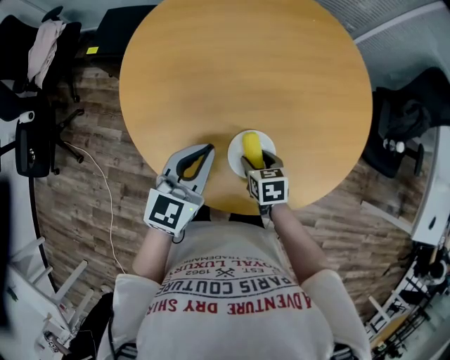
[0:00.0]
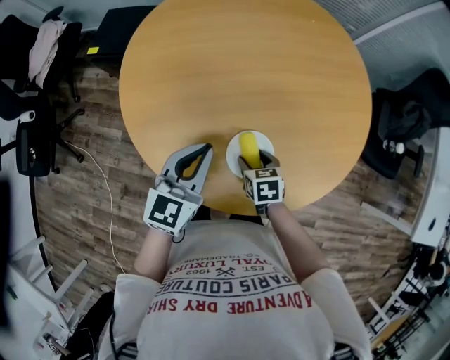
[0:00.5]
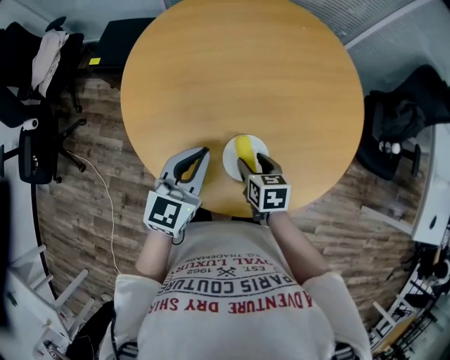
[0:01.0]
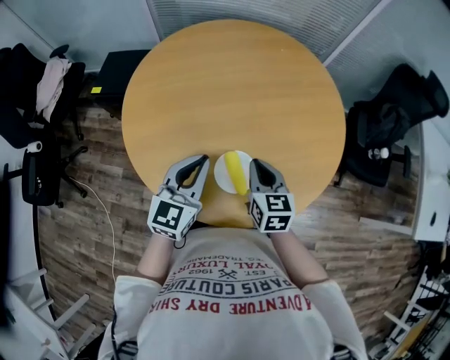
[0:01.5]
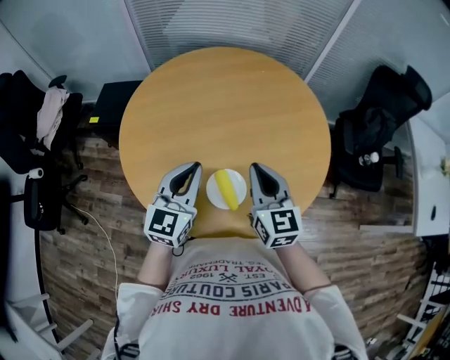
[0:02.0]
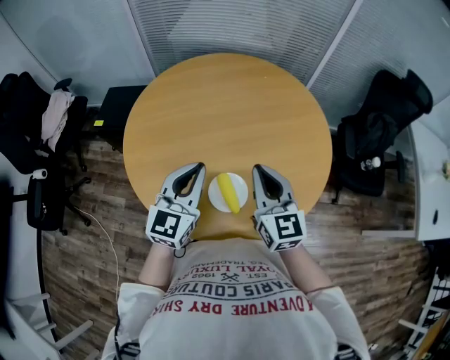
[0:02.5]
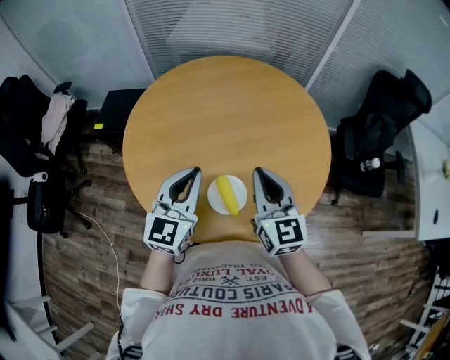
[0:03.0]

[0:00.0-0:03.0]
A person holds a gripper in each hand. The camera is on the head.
0:00.0 to 0:01.5: The right gripper travels upward by about 15 cm, turns by some 30 degrees, and closes, while the left gripper ends up roughly 5 cm from where it was.
0:01.5 to 0:03.0: The right gripper heads upward, covering roughly 15 cm, and turns by roughly 20 degrees, while the left gripper shifts some 5 cm upward.

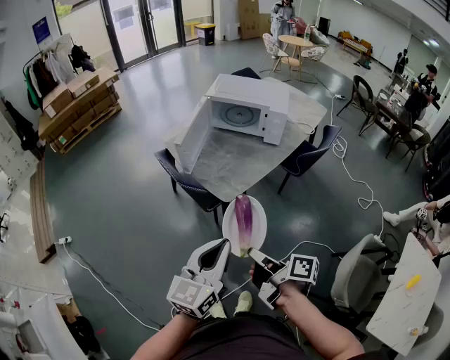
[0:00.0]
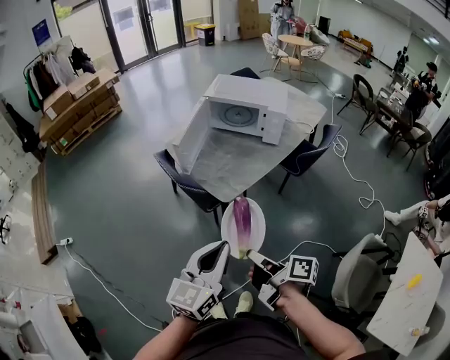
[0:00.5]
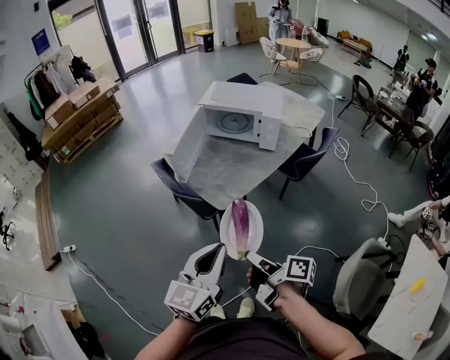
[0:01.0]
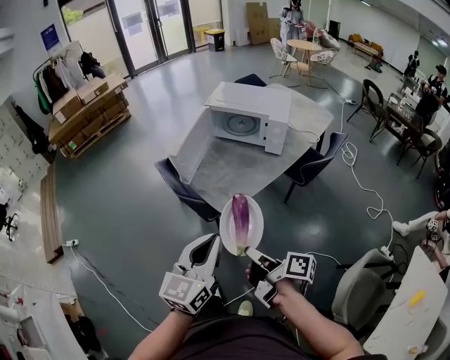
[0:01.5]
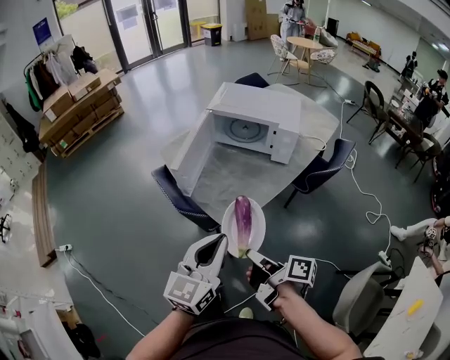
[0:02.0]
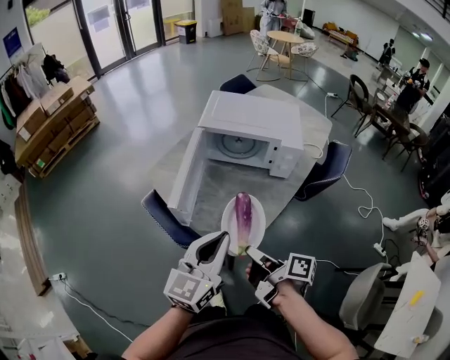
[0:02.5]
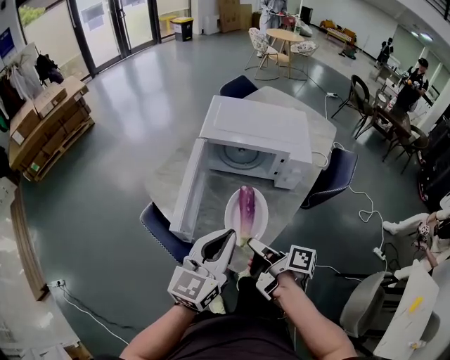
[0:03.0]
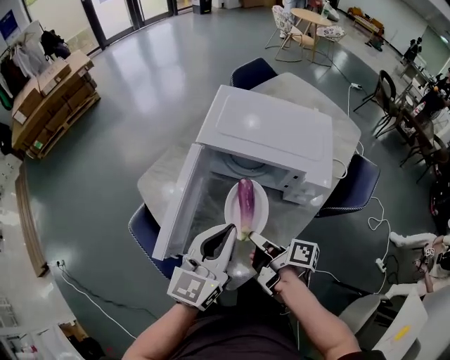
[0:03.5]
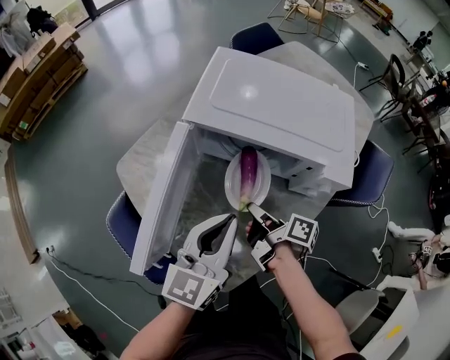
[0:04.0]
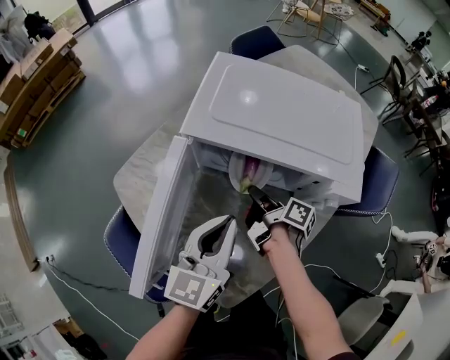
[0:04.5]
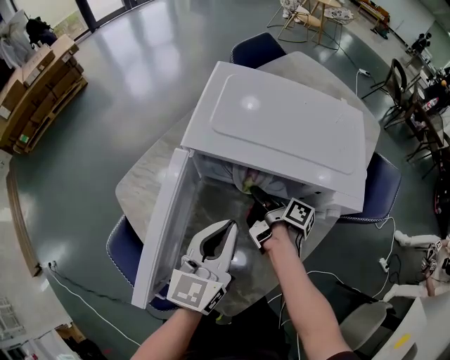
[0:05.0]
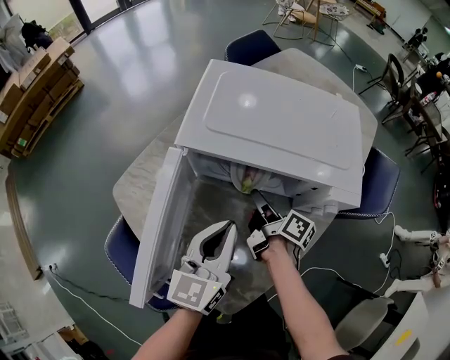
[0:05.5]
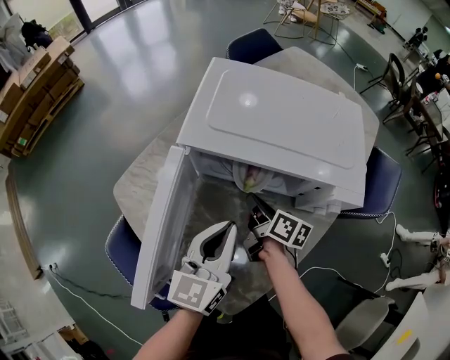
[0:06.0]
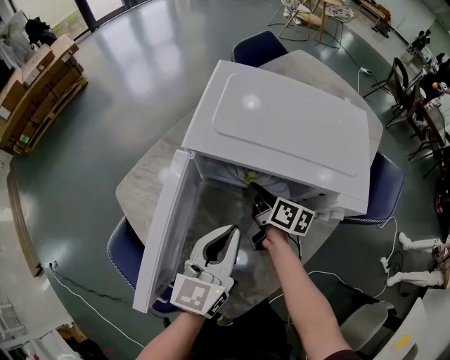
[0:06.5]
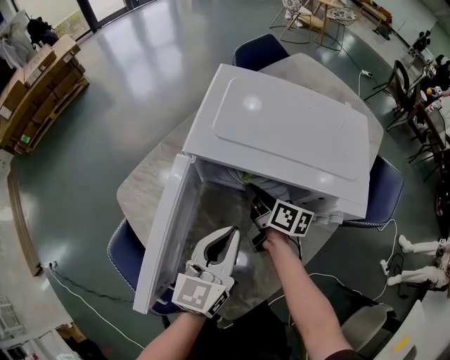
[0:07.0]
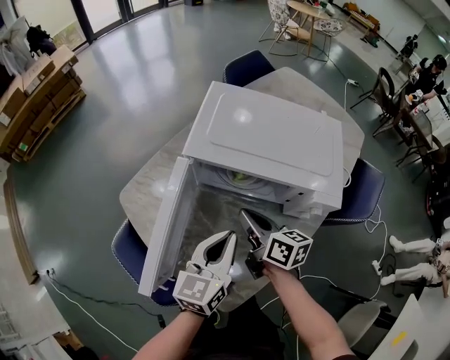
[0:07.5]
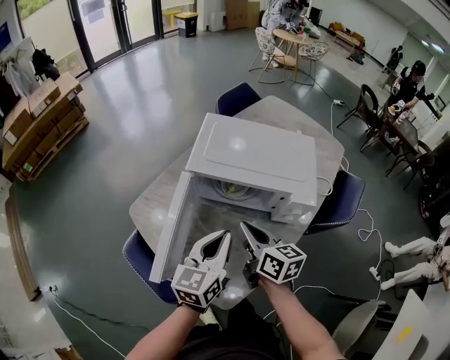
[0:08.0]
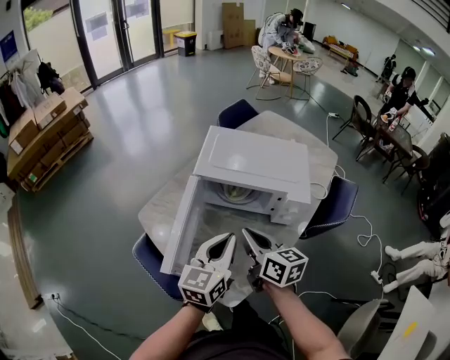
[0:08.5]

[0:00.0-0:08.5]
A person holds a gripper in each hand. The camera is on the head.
0:00.0 to 0:02.0: The left gripper ends up approximately 15 cm from where it was.
0:02.0 to 0:04.0: The left gripper ends up roughly 40 cm from where it was.
0:04.0 to 0:06.5: The left gripper heads downward, covering approximately 5 cm.
0:06.5 to 0:08.5: The left gripper goes approximately 15 cm upward.

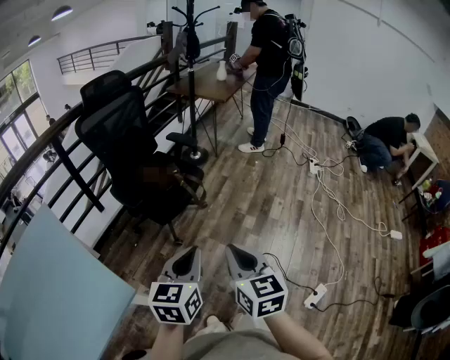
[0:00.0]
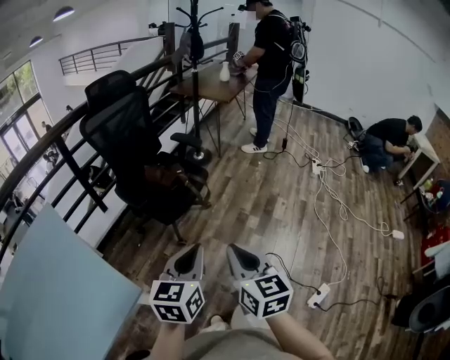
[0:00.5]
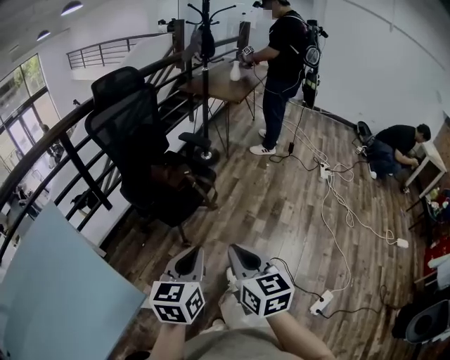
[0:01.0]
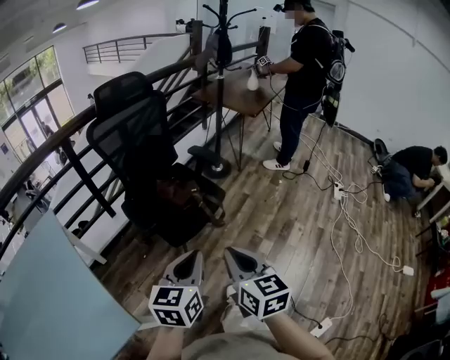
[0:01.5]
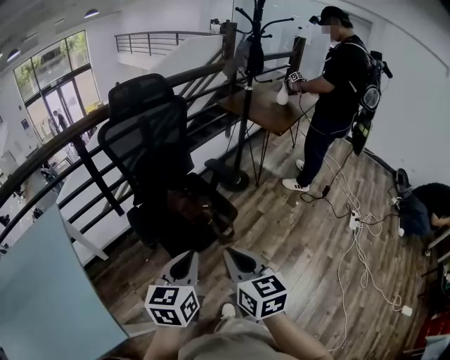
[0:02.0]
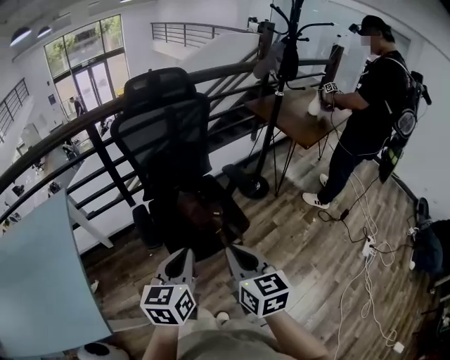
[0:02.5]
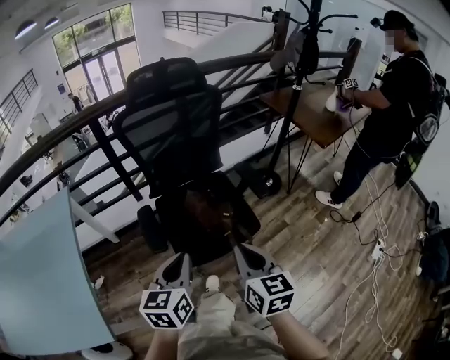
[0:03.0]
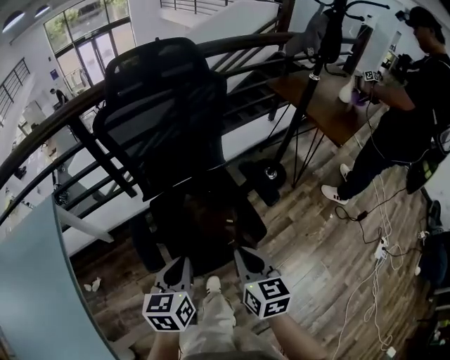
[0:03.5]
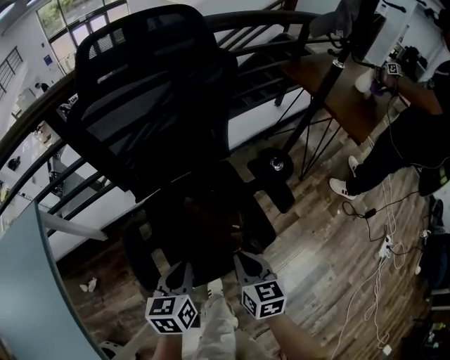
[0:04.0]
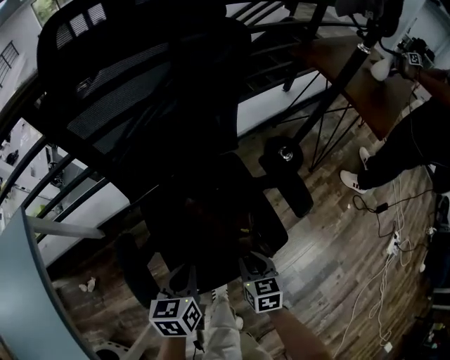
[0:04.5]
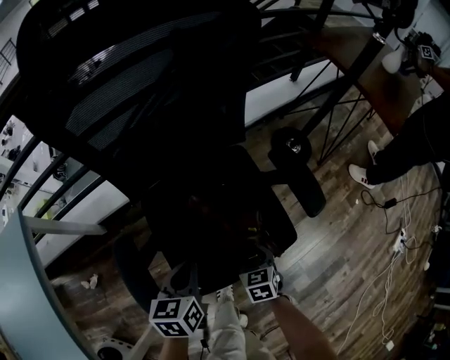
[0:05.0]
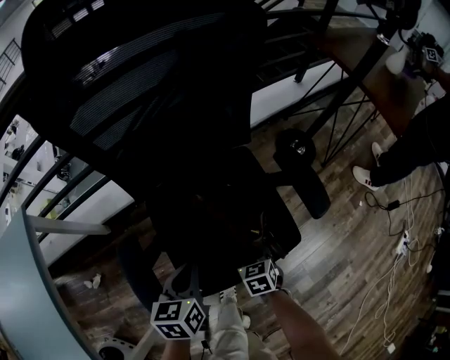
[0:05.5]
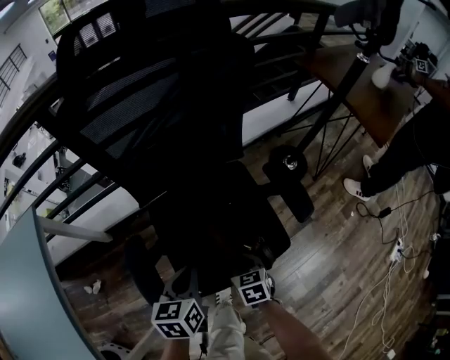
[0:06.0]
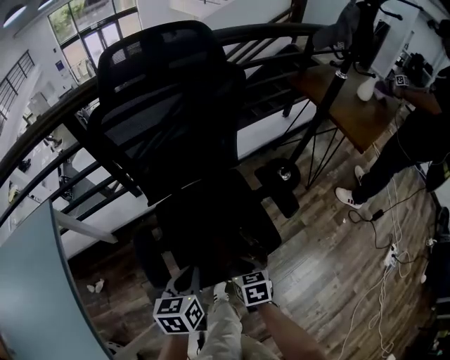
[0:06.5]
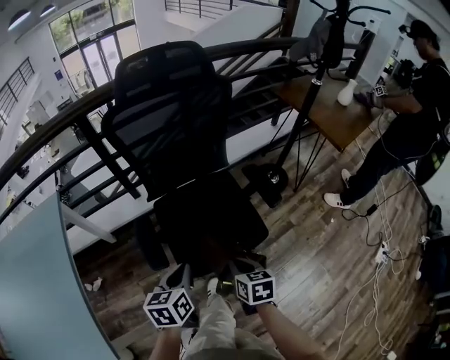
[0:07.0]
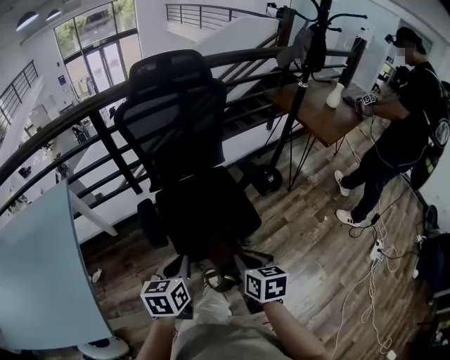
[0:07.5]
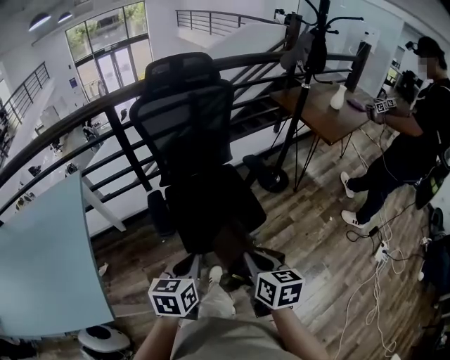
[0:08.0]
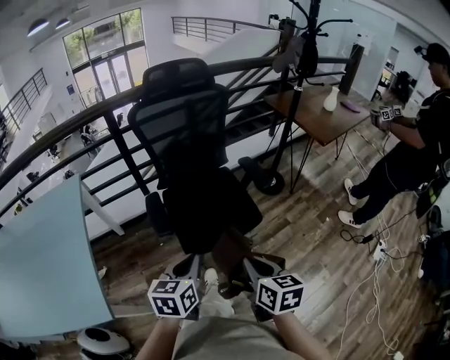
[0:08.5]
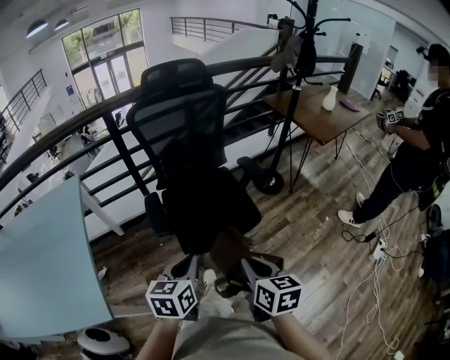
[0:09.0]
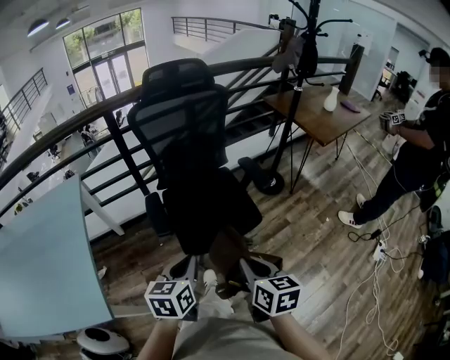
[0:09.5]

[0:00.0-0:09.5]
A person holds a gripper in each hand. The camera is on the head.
0:00.0 to 0:02.0: The grippers both shift forward by about 30 cm. The right gripper swivels roughly 20 degrees.
0:02.0 to 0:04.0: Both grippers travel together forward and downward, about 40 cm. The left gripper rotates about 30 degrees.
0:04.0 to 0:05.5: The right gripper shifts approximately 25 cm downward, turns by about 30 degrees, and opens, then closes once more. Meanwhile the left gripper heads downward and forward, covering roughly 10 cm.
0:05.5 to 0:07.5: The right gripper heads upward and backward, covering approximately 40 cm, and swivels about 30 degrees. The left gripper heads backward and upward, covering some 30 cm.
0:07.5 to 0:09.5: The right gripper travels backward and upward by some 10 cm. The left gripper is displaced backward by about 10 cm.

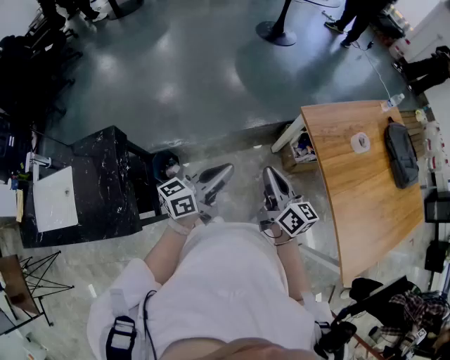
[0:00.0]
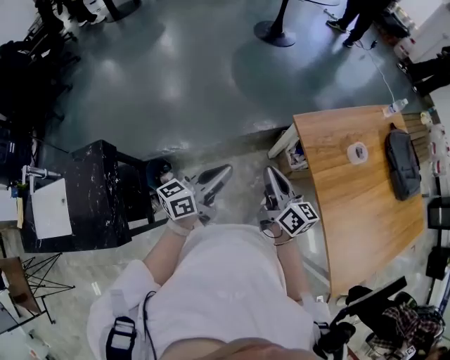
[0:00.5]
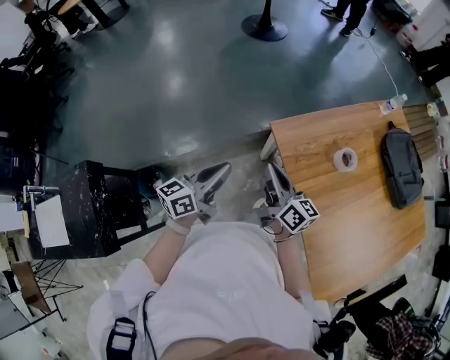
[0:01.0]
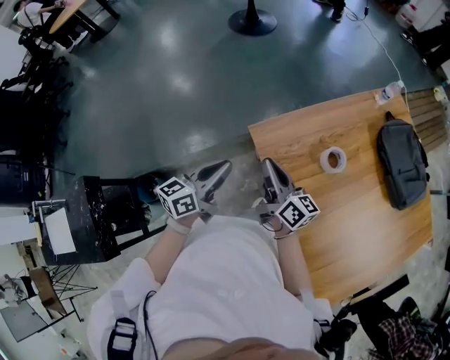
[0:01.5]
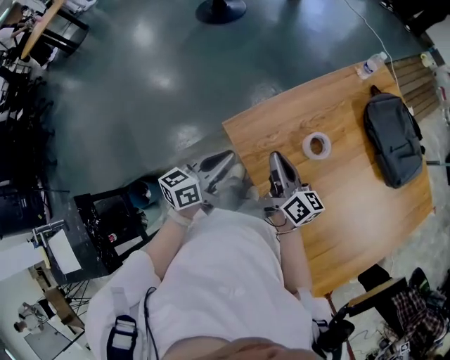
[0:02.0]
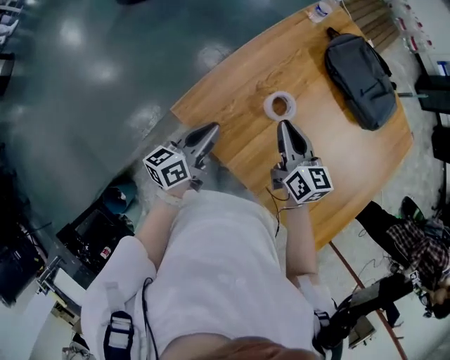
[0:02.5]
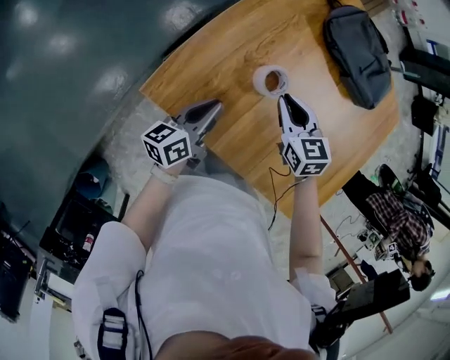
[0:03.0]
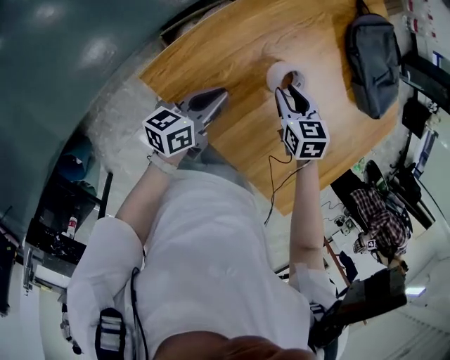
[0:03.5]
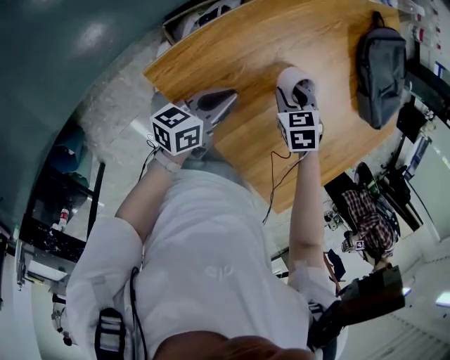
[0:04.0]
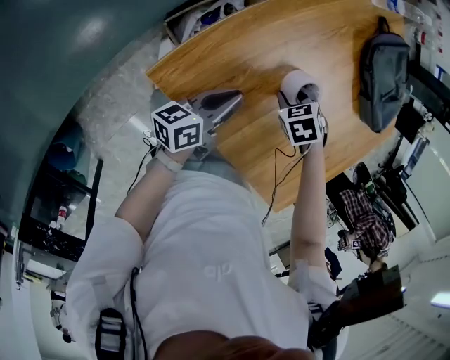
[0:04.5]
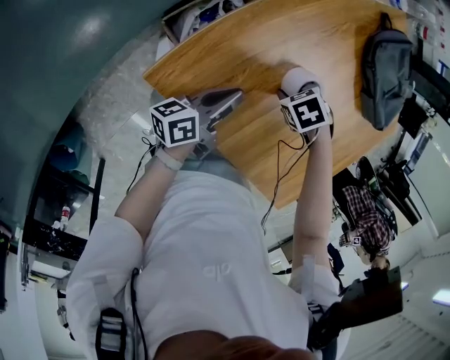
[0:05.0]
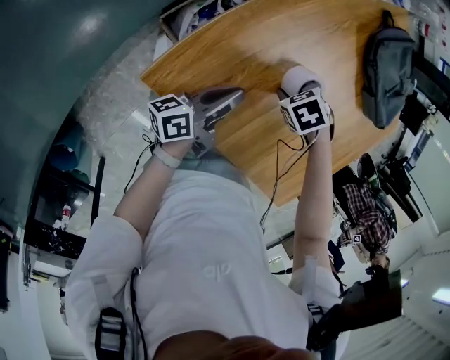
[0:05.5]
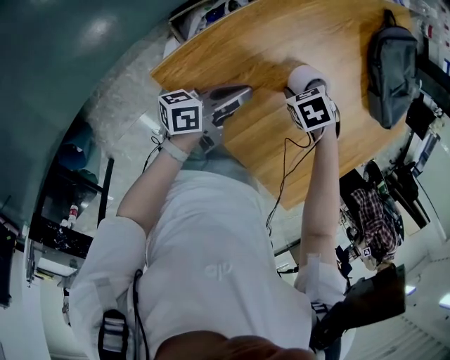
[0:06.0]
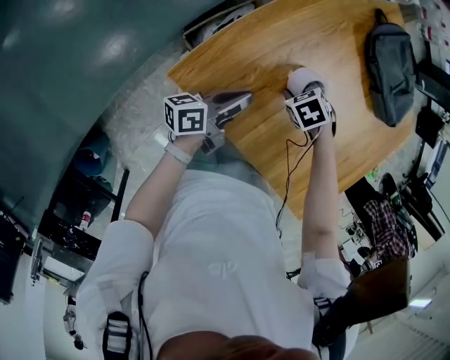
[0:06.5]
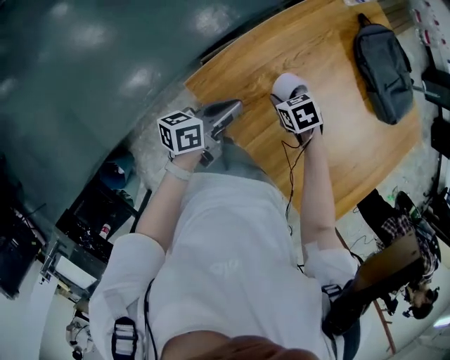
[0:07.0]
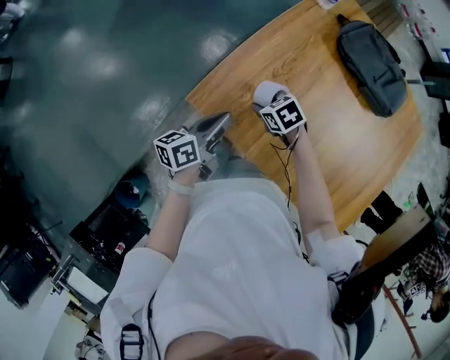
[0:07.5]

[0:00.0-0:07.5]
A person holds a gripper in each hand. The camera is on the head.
0:00.0 to 0:02.0: The pair of grippers is taken to the right and forward, approximately 50 cm. The left gripper changes its angle by some 20 degrees.
0:02.0 to 0:04.0: Both grippers move downward, some 25 cm. The left gripper turns by about 30 degrees; the right gripper angles its fingers downward, by approximately 70 degrees, and opens its fingers.
0:04.0 to 0:05.5: The right gripper turns by approximately 30 degrees. Meanwhile the left gripper turns by roughly 20 degrees.
0:05.5 to 0:07.5: The right gripper ends up approximately 5 cm from where it was, and swivels about 40 degrees. The left gripper heads upward, covering some 10 cm, and changes its angle by some 30 degrees.
